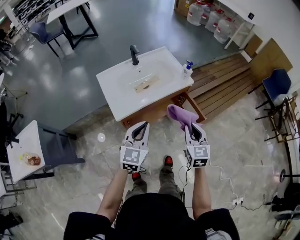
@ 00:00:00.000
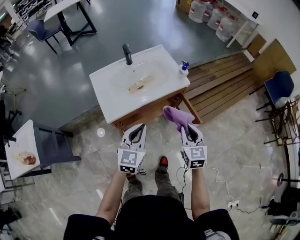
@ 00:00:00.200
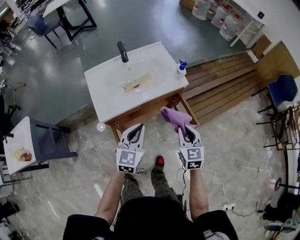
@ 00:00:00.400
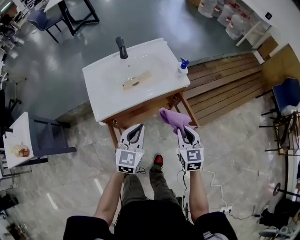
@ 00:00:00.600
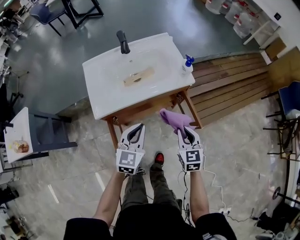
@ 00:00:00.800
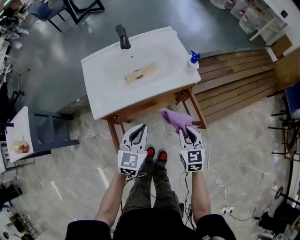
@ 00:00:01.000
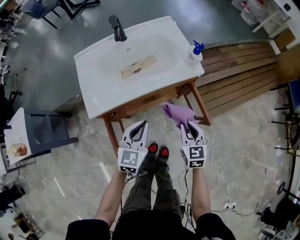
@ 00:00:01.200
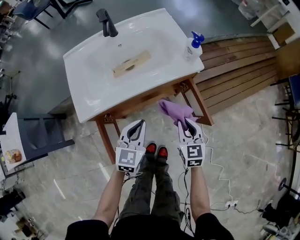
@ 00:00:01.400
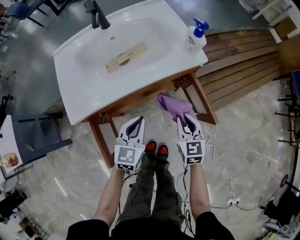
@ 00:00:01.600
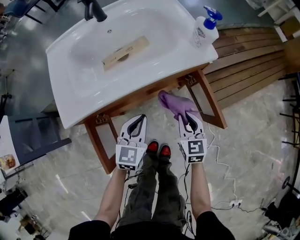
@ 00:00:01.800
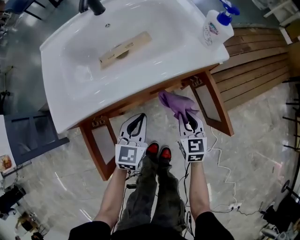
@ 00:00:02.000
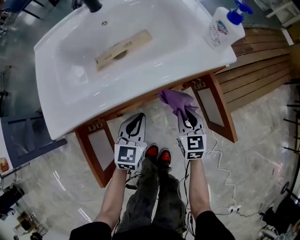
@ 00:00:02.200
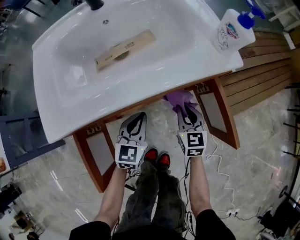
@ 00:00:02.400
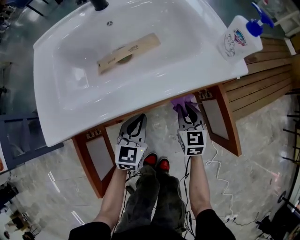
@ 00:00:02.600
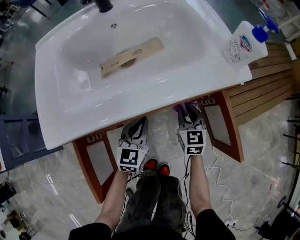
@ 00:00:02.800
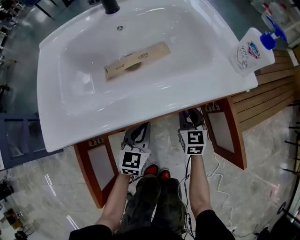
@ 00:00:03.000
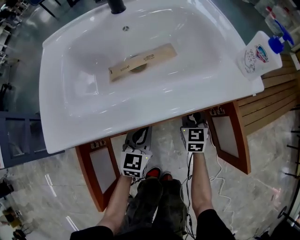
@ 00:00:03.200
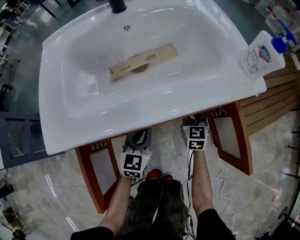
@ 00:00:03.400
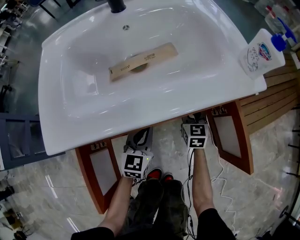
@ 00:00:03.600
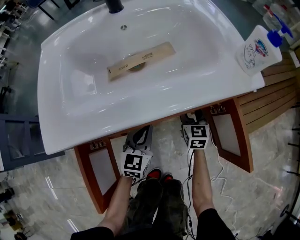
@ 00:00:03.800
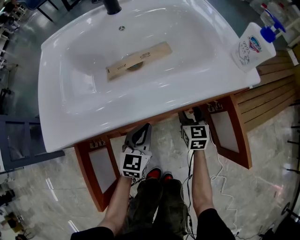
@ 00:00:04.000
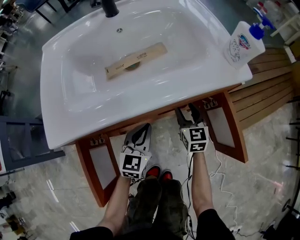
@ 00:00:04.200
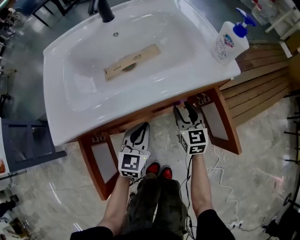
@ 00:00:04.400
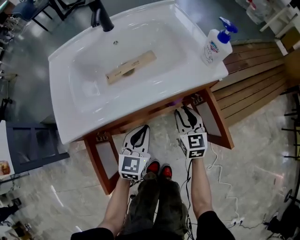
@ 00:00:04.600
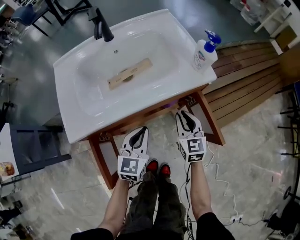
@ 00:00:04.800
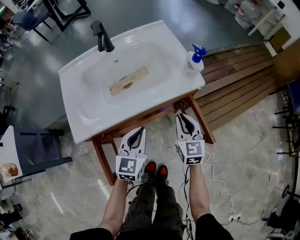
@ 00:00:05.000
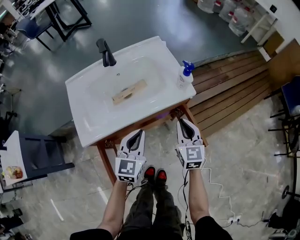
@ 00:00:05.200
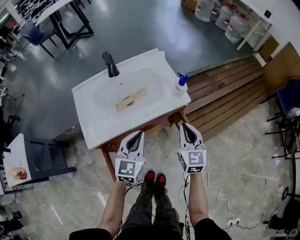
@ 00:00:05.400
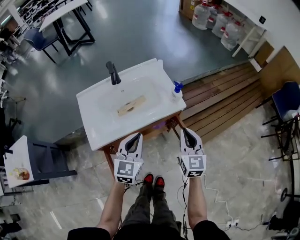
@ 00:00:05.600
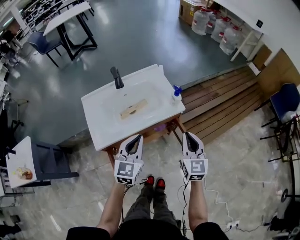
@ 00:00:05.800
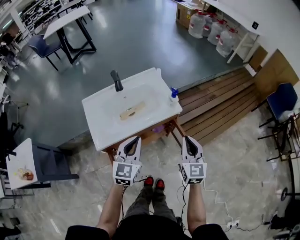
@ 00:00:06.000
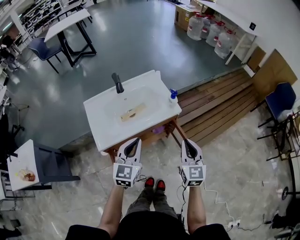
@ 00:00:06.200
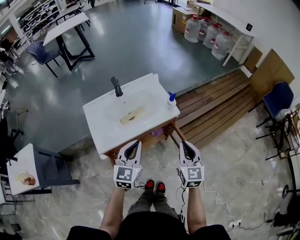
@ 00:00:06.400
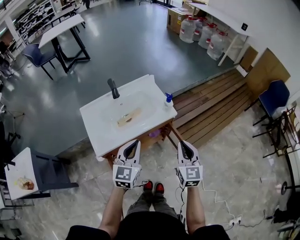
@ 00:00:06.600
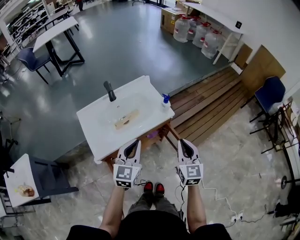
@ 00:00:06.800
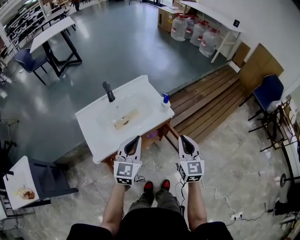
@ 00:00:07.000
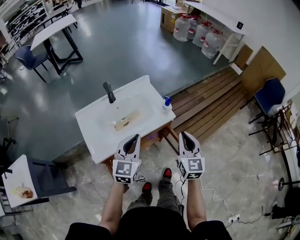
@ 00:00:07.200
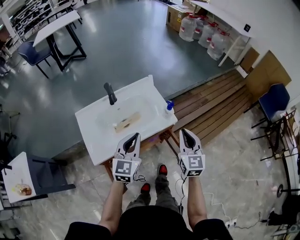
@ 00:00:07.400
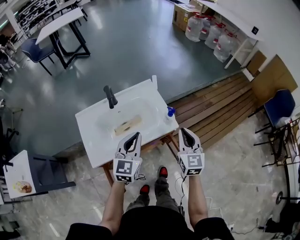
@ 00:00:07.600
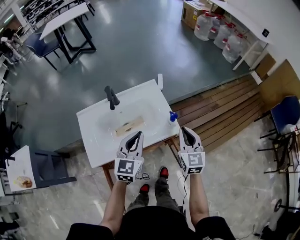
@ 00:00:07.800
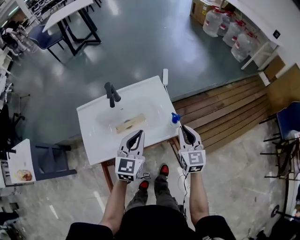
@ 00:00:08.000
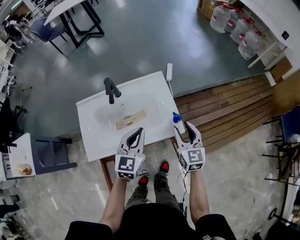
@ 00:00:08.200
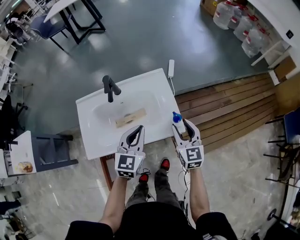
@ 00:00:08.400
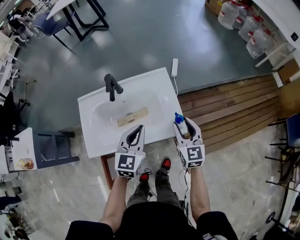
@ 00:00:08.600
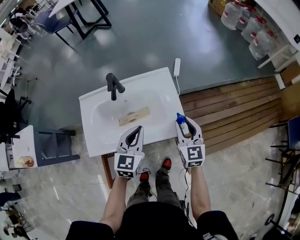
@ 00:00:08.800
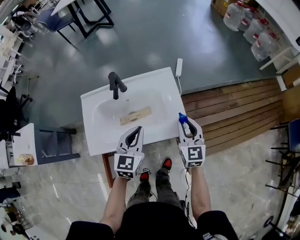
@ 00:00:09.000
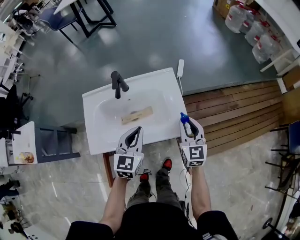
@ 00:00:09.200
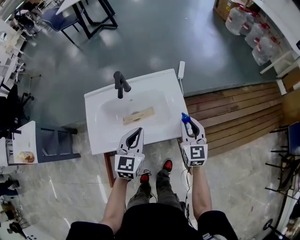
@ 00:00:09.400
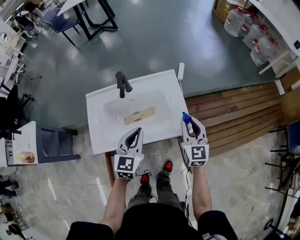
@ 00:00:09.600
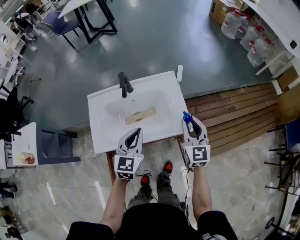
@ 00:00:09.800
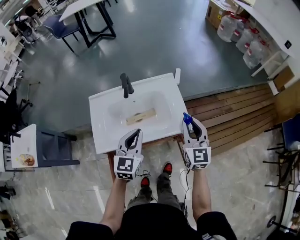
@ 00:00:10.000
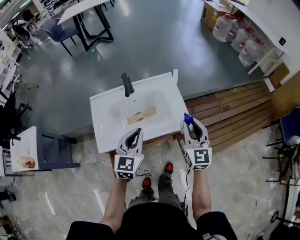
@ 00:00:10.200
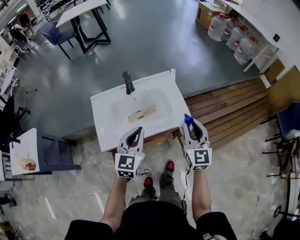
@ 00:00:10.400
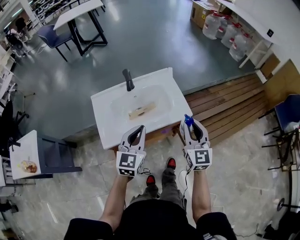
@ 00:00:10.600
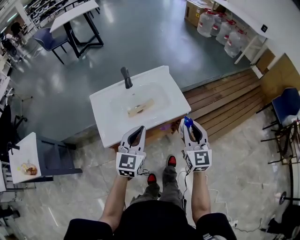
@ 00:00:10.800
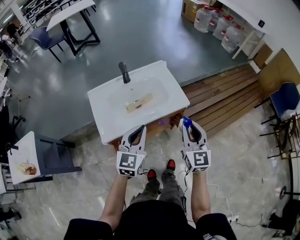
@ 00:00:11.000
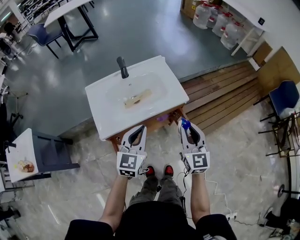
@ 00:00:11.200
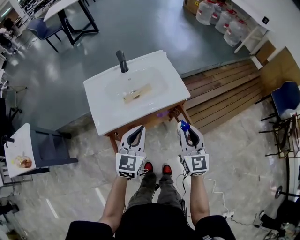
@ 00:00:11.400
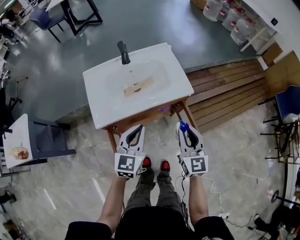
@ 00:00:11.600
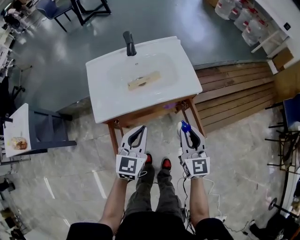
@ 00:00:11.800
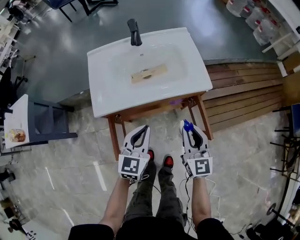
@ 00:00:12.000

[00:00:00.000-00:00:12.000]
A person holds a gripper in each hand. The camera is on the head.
00:00:00.000 to 00:00:01.600: Both grippers move downward and forward, some 30 cm.
00:00:01.600 to 00:00:03.000: Both grippers travel together downward and forward, some 25 cm.
00:00:03.000 to 00:00:04.400: The right gripper goes approximately 5 cm upward, and opens its fingers. The left gripper moves approximately 5 cm.
00:00:04.400 to 00:00:06.000: Both grippers travel together upward, approximately 40 cm. The right gripper closes.
00:00:06.000 to 00:00:07.600: The grippers both shift forward by some 15 cm.
00:00:07.600 to 00:00:09.000: The left gripper travels downward and forward by some 10 cm. The right gripper shifts some 15 cm forward and downward, and opens, then closes again.
00:00:09.000 to 00:00:10.400: The left gripper moves backward, upward and to the left, roughly 15 cm. The right gripper travels backward and upward by some 20 cm.
00:00:10.400 to 00:00:12.000: Both grippers move downward and backward, some 20 cm.

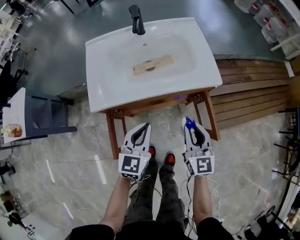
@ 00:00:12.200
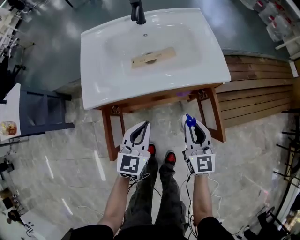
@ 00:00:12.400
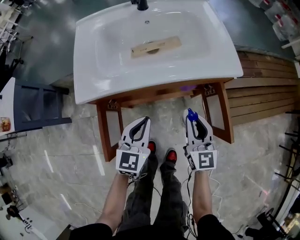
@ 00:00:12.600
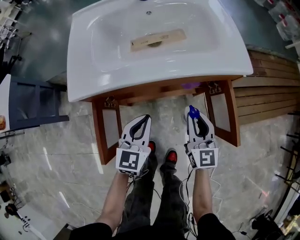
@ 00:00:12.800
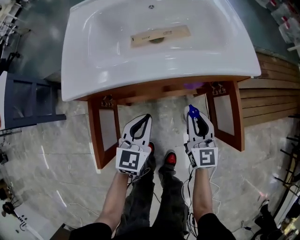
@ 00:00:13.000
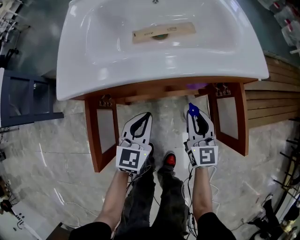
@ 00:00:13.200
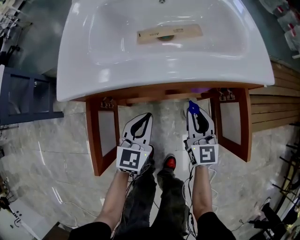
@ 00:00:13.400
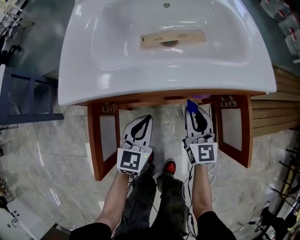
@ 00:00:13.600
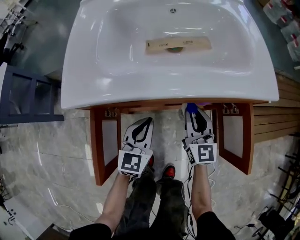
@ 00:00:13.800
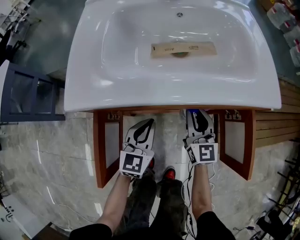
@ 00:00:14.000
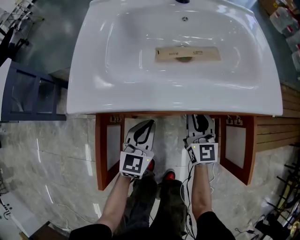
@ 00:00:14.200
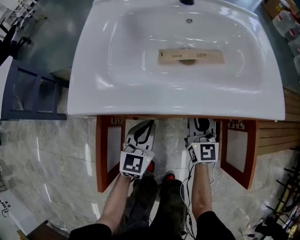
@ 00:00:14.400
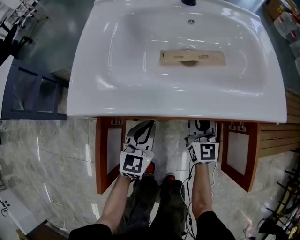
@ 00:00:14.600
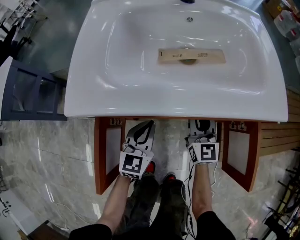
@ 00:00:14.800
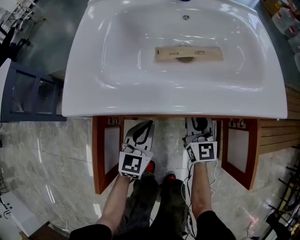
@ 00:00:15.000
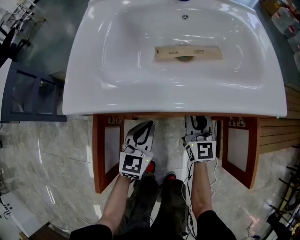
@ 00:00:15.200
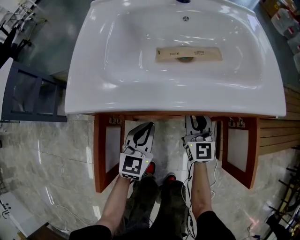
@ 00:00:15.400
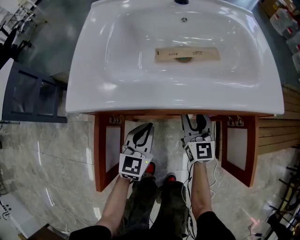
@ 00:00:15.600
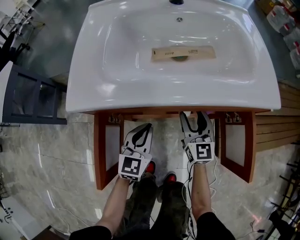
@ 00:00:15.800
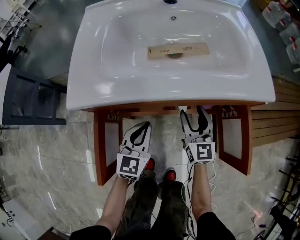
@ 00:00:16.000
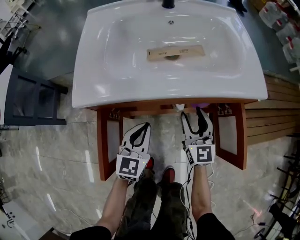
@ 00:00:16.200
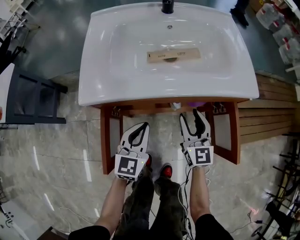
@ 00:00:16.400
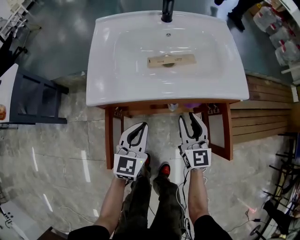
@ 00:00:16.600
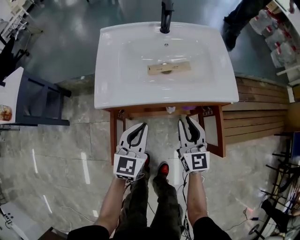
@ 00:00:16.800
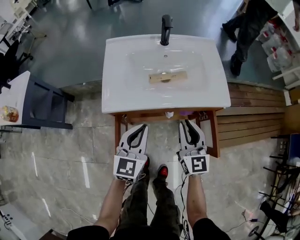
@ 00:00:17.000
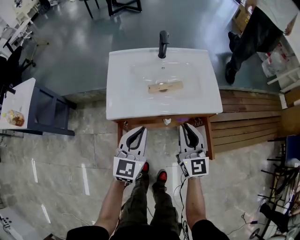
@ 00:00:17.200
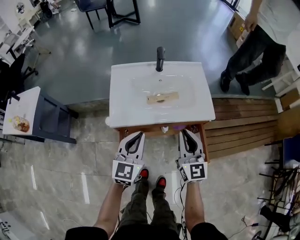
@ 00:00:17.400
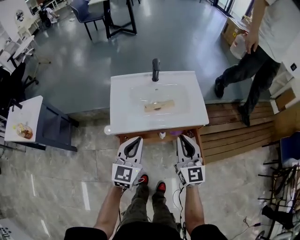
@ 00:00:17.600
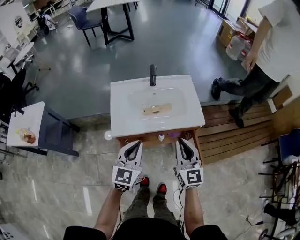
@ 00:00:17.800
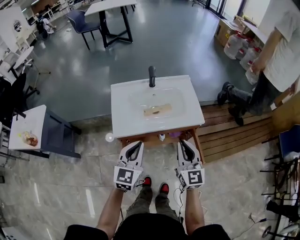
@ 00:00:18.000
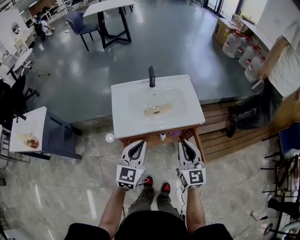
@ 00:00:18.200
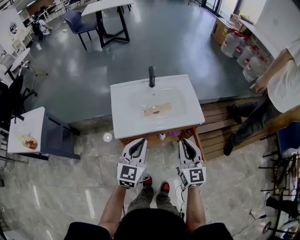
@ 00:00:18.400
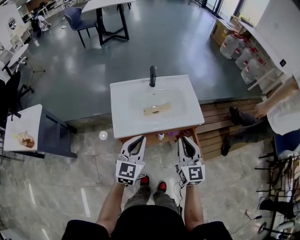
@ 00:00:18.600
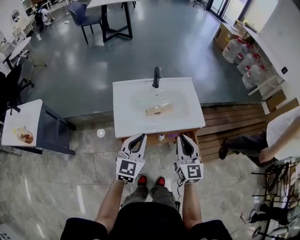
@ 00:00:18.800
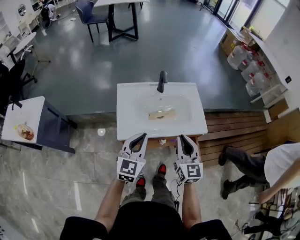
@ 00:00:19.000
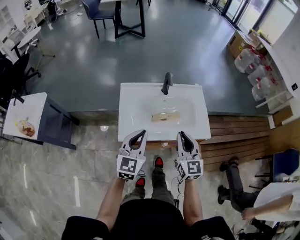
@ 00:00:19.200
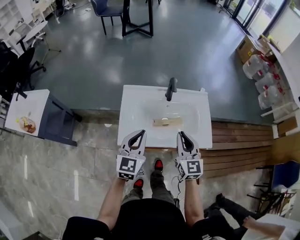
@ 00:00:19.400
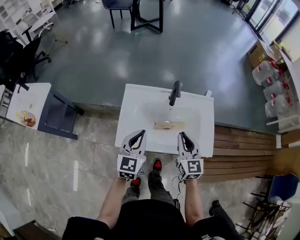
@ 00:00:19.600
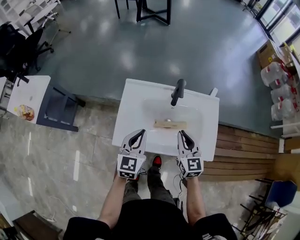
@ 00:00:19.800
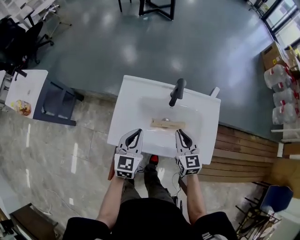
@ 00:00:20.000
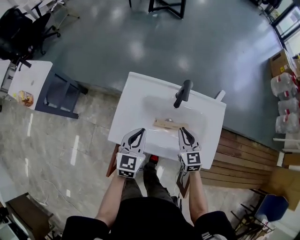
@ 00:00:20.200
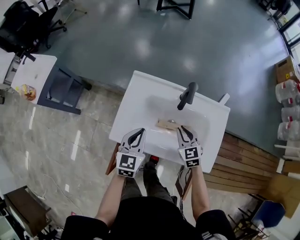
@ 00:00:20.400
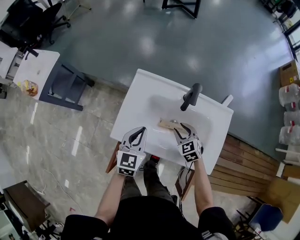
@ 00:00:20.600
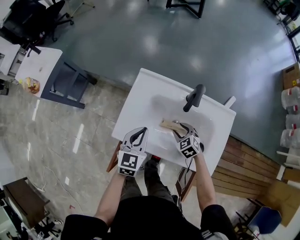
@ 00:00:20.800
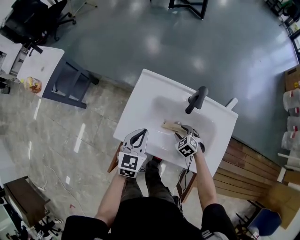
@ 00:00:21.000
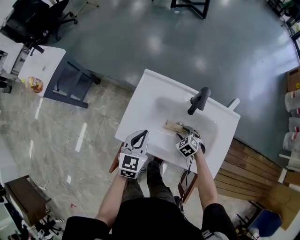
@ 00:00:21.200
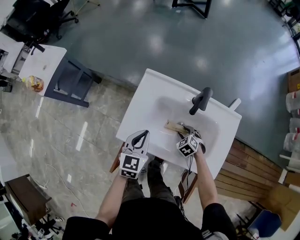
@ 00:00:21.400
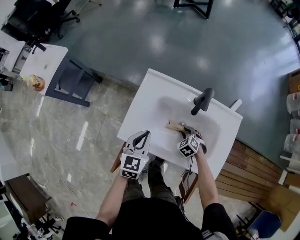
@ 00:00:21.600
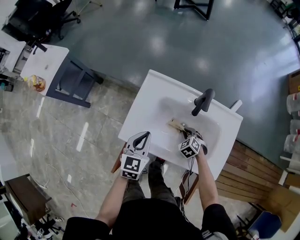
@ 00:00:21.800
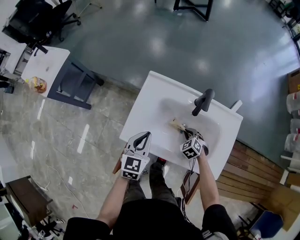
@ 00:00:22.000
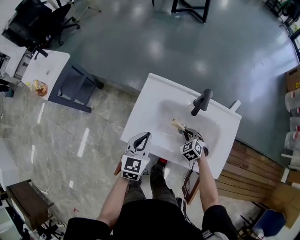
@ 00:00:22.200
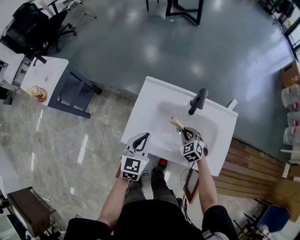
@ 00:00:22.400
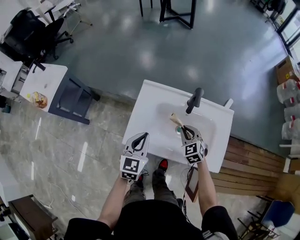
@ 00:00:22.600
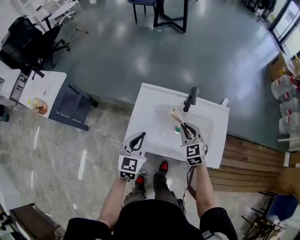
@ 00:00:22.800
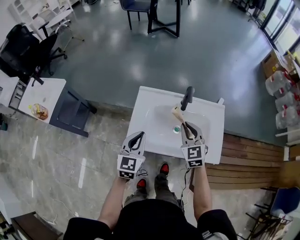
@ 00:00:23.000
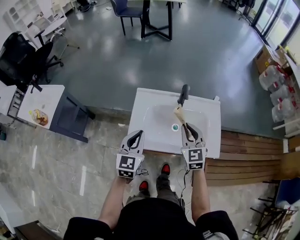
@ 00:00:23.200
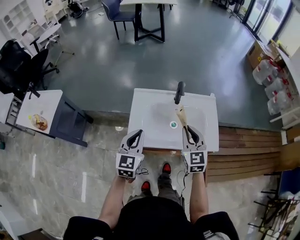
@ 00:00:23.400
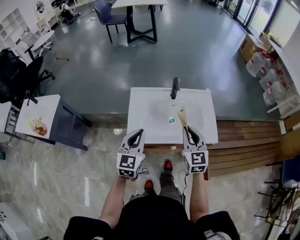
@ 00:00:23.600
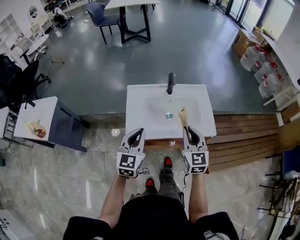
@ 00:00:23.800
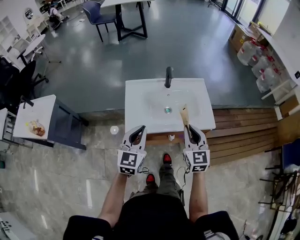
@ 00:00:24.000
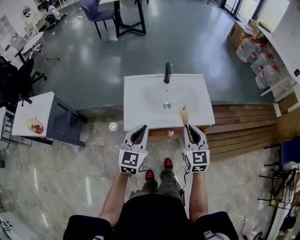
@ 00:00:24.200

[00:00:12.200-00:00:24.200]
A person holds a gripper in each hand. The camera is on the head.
00:00:12.200 to 00:00:13.800: The right gripper moves downward and forward, about 25 cm, while the left gripper shifts roughly 25 cm downward.
00:00:13.800 to 00:00:15.200: The right gripper ends up some 5 cm from where it was.
00:00:15.200 to 00:00:16.600: The left gripper shifts approximately 15 cm upward. Meanwhile the right gripper is displaced upward and backward by some 15 cm.
00:00:16.600 to 00:00:18.200: Both grippers travel together upward, about 30 cm. The right gripper closes its fingers.
00:00:18.200 to 00:00:19.800: The grippers both shift forward by roughly 25 cm. The right gripper swivels about 20 degrees, while the left gripper changes its angle by approximately 20 degrees.
00:00:19.800 to 00:00:21.200: The right gripper goes roughly 25 cm downward, points its fingers about 50 degrees further downward, and opens its fingers. Meanwhile the left gripper shifts about 5 cm downward.
00:00:21.200 to 00:00:22.600: The right gripper is displaced upward by roughly 15 cm, swivels roughly 30 degrees, and closes its fingers; the left gripper heads upward, covering about 5 cm.
00:00:22.600 to 00:00:24.200: The left gripper heads backward and upward, covering about 15 cm, and turns by approximately 20 degrees, while the right gripper moves backward and upward, approximately 30 cm, and turns by about 40 degrees.
